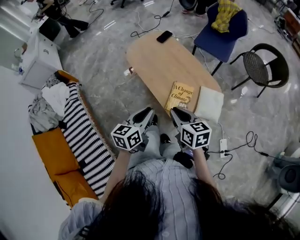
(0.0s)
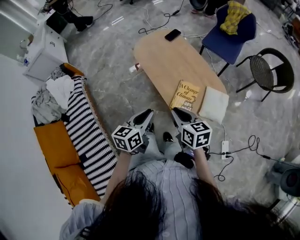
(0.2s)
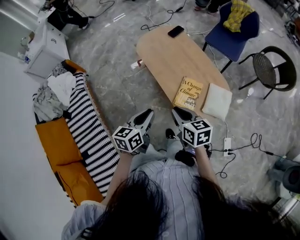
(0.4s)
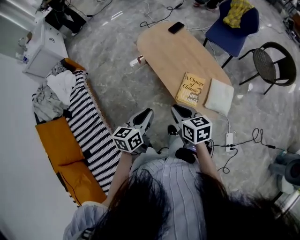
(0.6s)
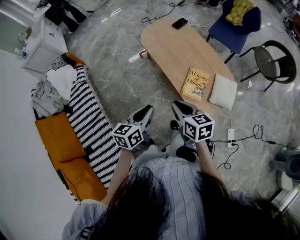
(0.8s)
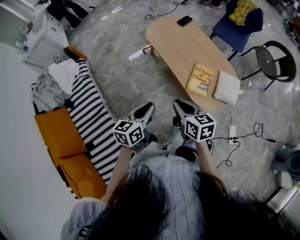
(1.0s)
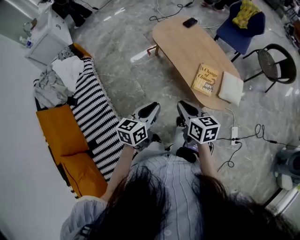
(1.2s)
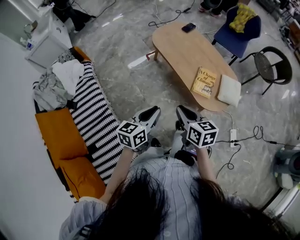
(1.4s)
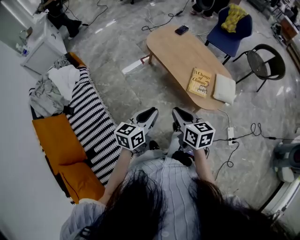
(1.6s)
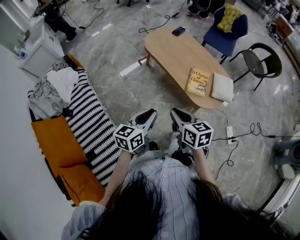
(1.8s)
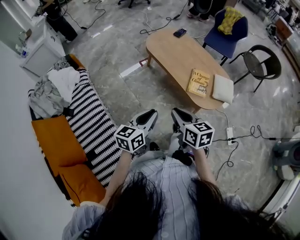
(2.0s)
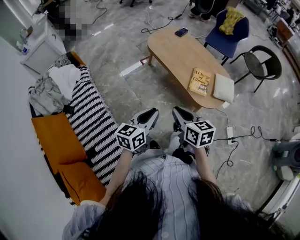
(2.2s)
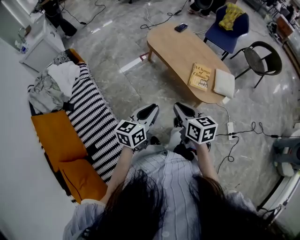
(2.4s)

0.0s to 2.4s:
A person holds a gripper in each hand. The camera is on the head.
0.0s to 1.2s: Both grippers move to the left and backward, roughly 20 cm.
1.2s to 2.4s: The right gripper heads backward and to the left, covering some 10 cm, while the left gripper shifts approximately 5 cm backward.

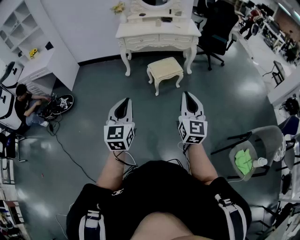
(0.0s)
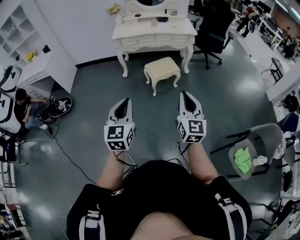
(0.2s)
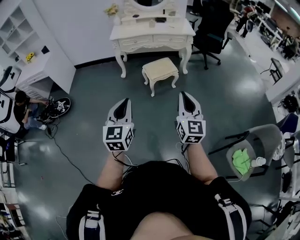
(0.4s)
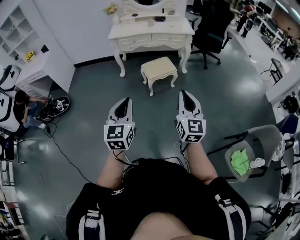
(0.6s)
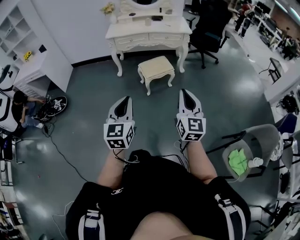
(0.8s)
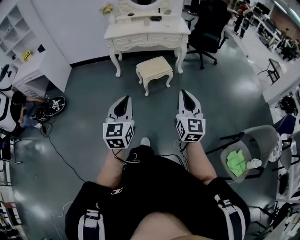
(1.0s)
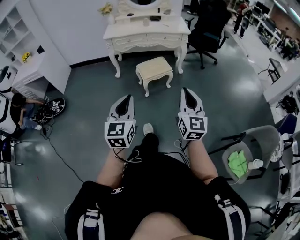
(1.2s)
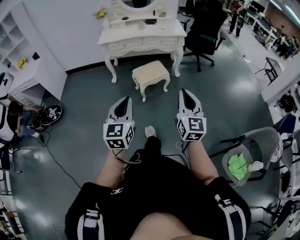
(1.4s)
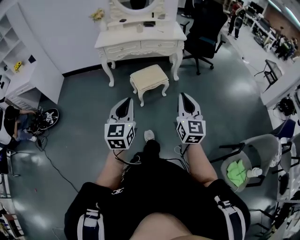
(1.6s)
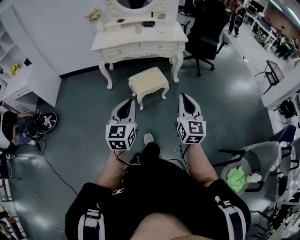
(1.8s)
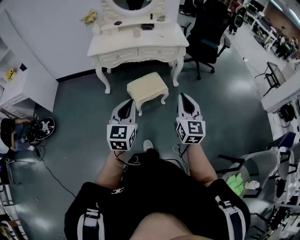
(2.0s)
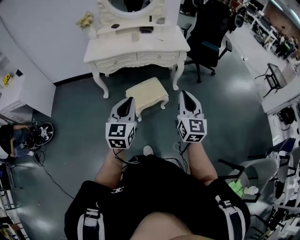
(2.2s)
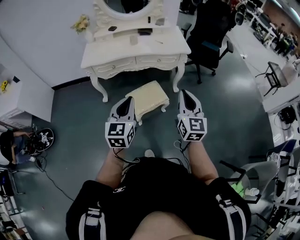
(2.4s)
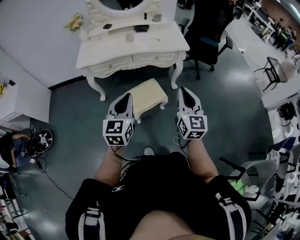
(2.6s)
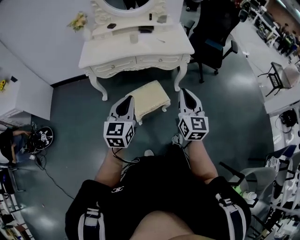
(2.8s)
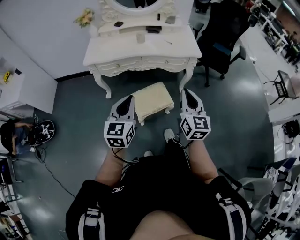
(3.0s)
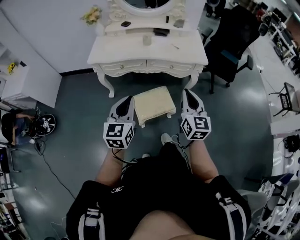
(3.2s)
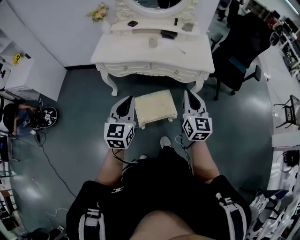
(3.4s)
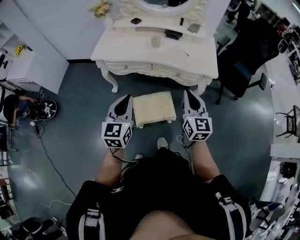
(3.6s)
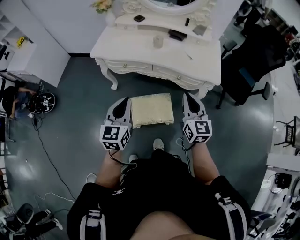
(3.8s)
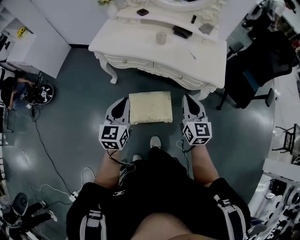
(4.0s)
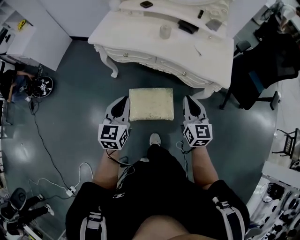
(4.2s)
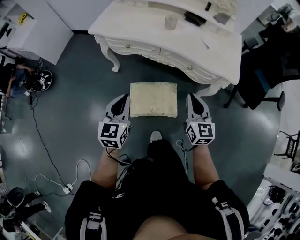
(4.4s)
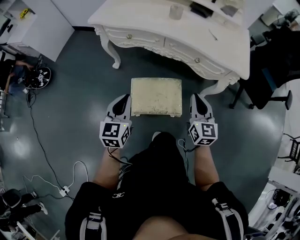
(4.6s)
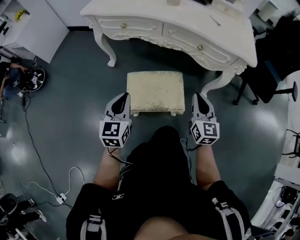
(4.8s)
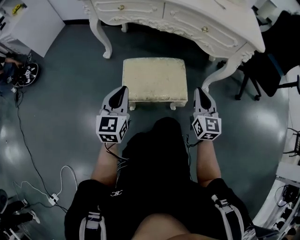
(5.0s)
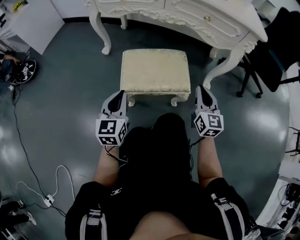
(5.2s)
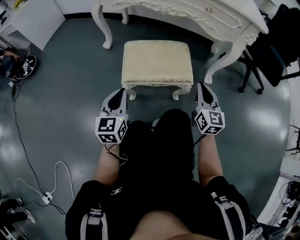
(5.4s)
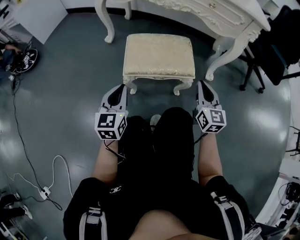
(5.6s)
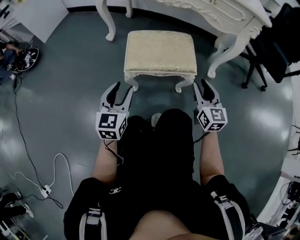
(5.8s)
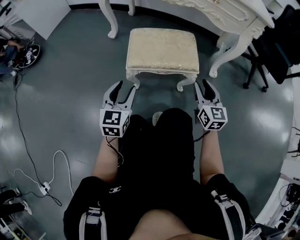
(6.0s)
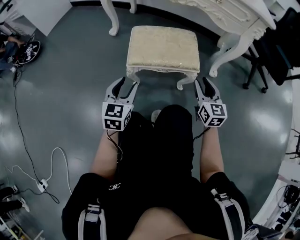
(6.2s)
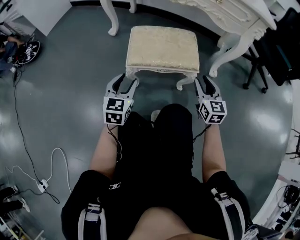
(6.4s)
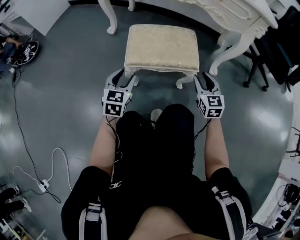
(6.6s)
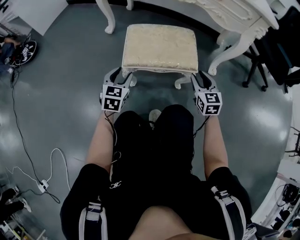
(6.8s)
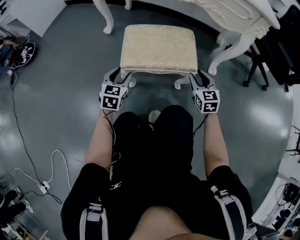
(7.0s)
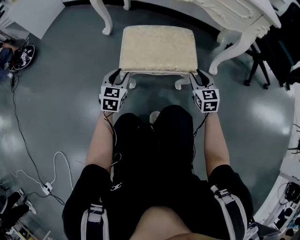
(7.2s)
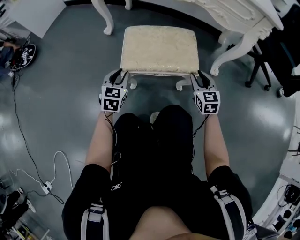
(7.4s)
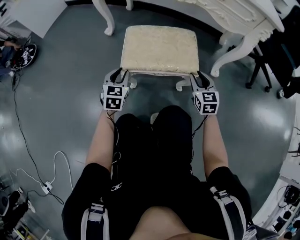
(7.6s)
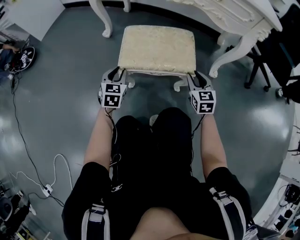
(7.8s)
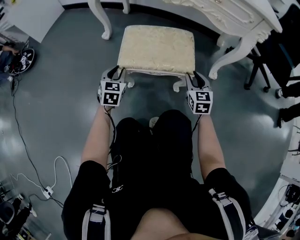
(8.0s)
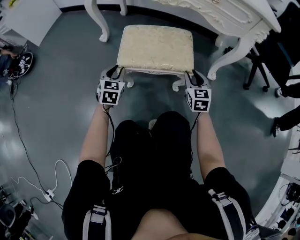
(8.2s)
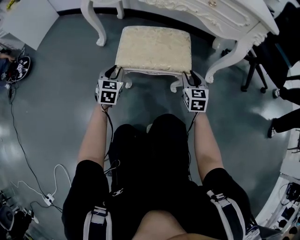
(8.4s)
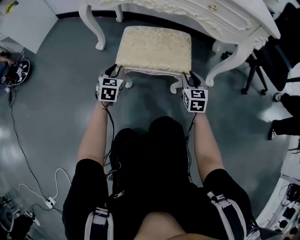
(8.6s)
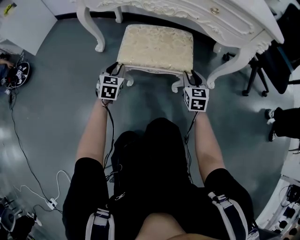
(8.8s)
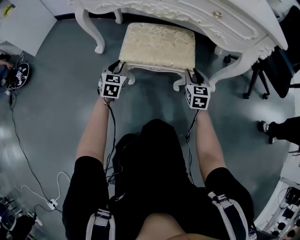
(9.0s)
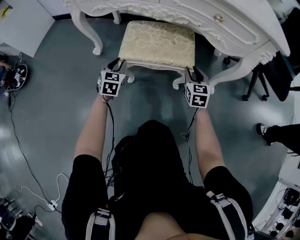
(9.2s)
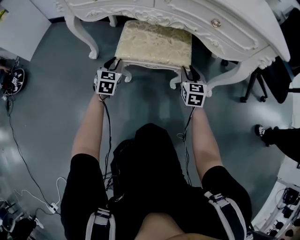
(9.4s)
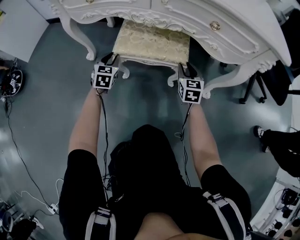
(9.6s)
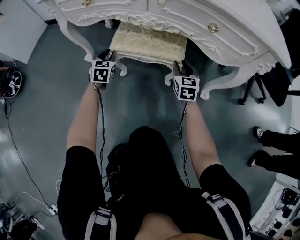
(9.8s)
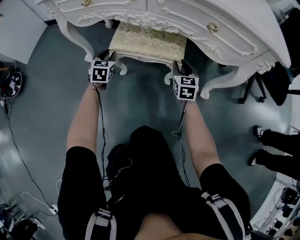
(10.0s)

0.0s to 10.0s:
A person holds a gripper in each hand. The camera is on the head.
0.0s to 1.4s: The grippers both shift to the right and forward by approximately 15 cm.
1.4s to 2.8s: Both grippers are carried forward, approximately 50 cm.
2.8s to 4.2s: The left gripper shifts by some 25 cm, and rotates roughly 30 degrees. The right gripper shifts by roughly 35 cm, and turns by roughly 30 degrees.
4.2s to 5.8s: The right gripper heads downward, covering about 50 cm, and opens. Meanwhile the left gripper travels downward and backward by approximately 50 cm, and opens up.
5.8s to 7.2s: The right gripper moves downward and forward, some 15 cm; the left gripper moves forward and downward, roughly 15 cm.
7.2s to 8.6s: Both grippers travel together forward, approximately 15 cm.
8.6s to 10.0s: Both grippers move forward, roughly 20 cm.

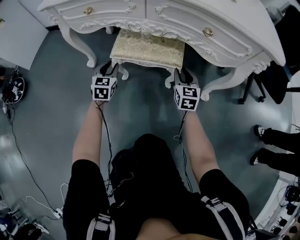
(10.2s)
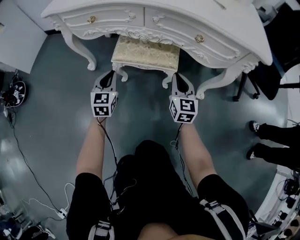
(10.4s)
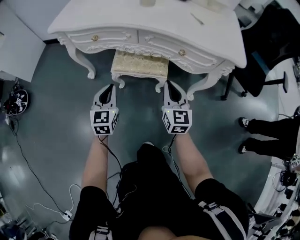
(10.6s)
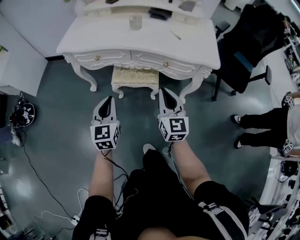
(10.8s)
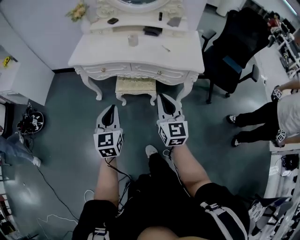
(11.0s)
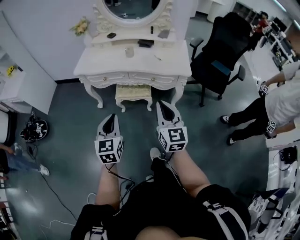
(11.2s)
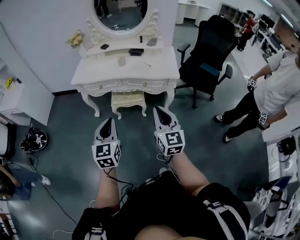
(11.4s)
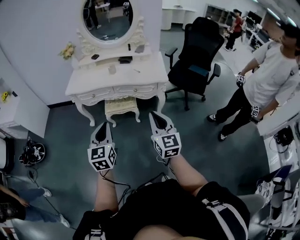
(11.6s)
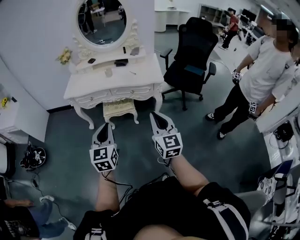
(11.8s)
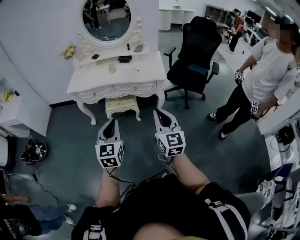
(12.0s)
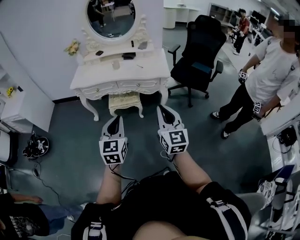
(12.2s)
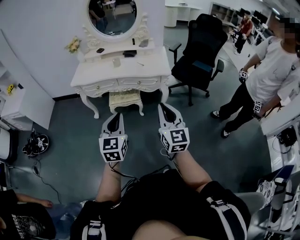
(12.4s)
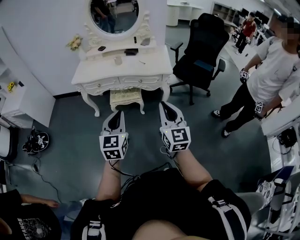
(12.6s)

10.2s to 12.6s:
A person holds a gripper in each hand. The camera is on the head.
10.2s to 11.4s: The two grippers travel together, backward, approximately 50 cm. The grippers both shift upward by some 70 cm. The left gripper closes up; the right gripper closes.
11.4s to 12.6s: The right gripper heads backward and to the right, covering about 10 cm. The left gripper goes about 10 cm to the right and backward.

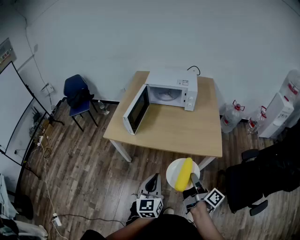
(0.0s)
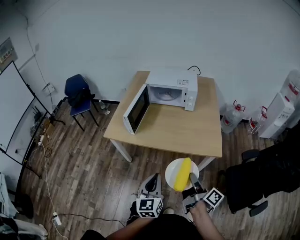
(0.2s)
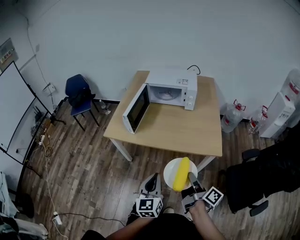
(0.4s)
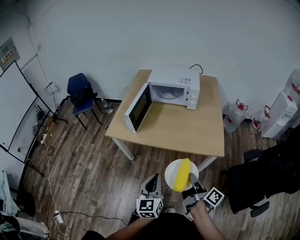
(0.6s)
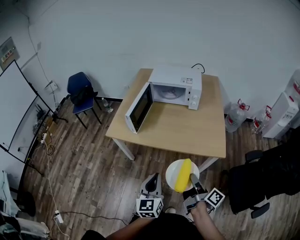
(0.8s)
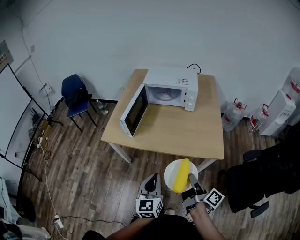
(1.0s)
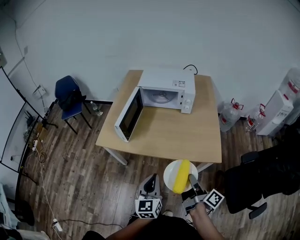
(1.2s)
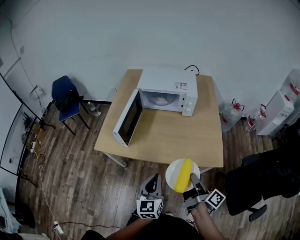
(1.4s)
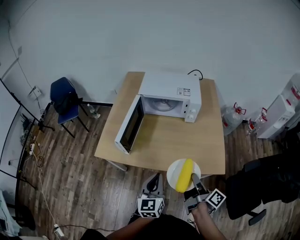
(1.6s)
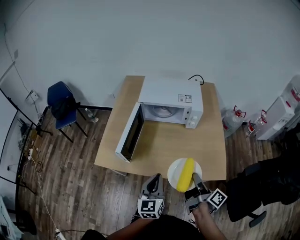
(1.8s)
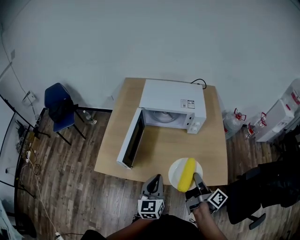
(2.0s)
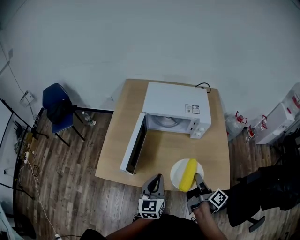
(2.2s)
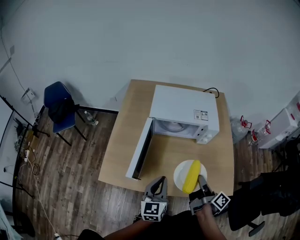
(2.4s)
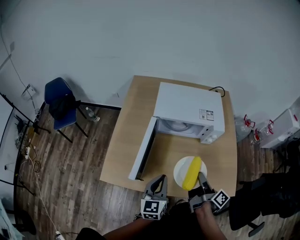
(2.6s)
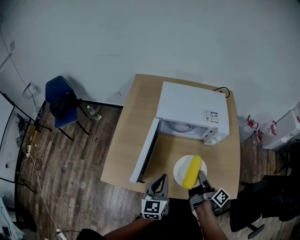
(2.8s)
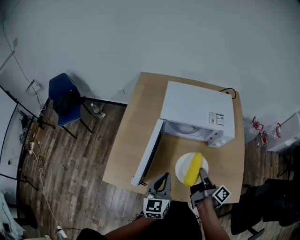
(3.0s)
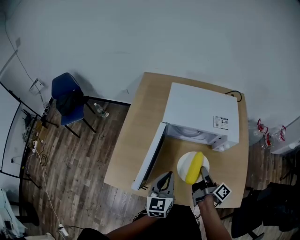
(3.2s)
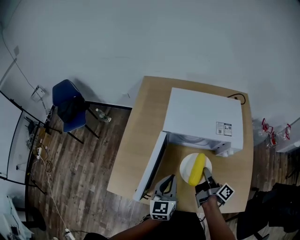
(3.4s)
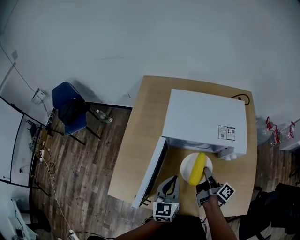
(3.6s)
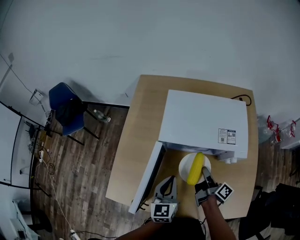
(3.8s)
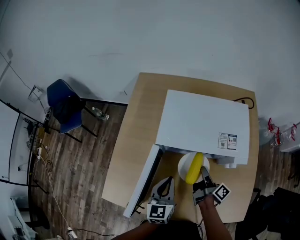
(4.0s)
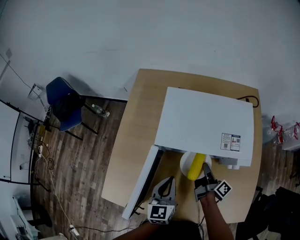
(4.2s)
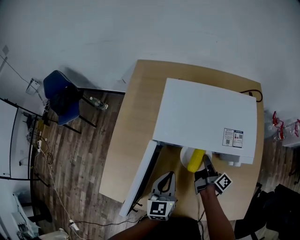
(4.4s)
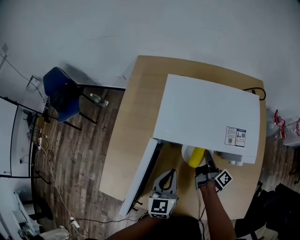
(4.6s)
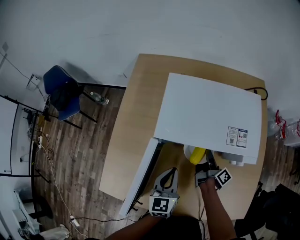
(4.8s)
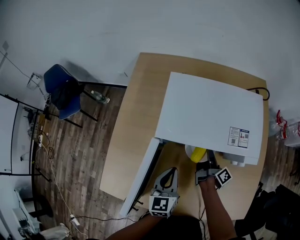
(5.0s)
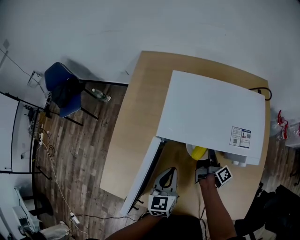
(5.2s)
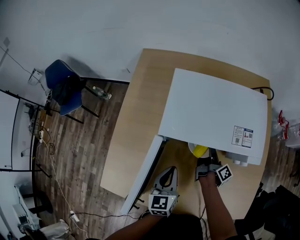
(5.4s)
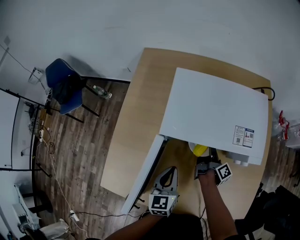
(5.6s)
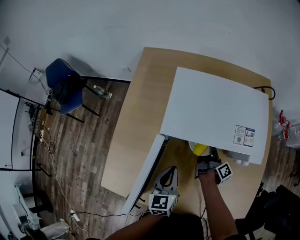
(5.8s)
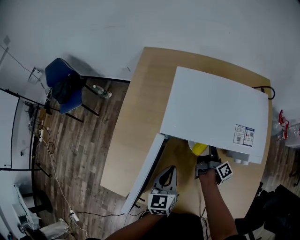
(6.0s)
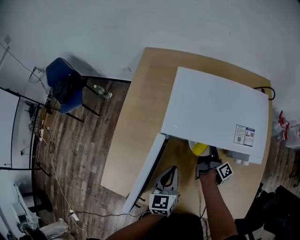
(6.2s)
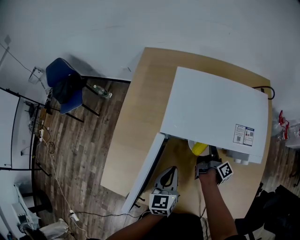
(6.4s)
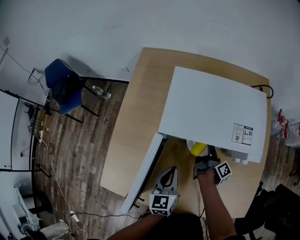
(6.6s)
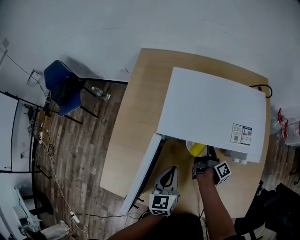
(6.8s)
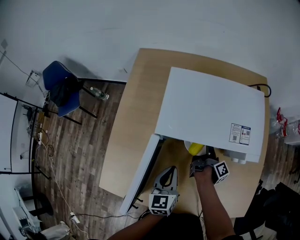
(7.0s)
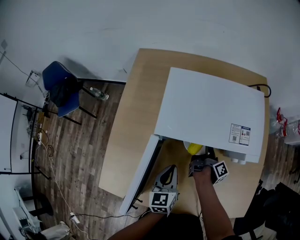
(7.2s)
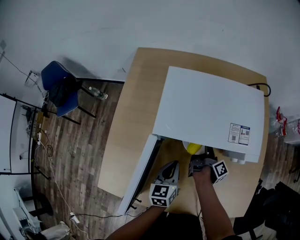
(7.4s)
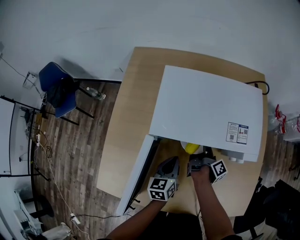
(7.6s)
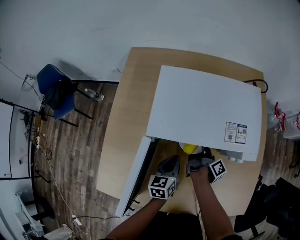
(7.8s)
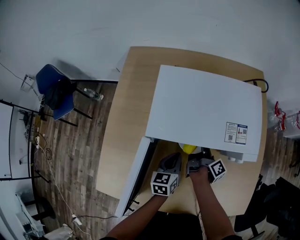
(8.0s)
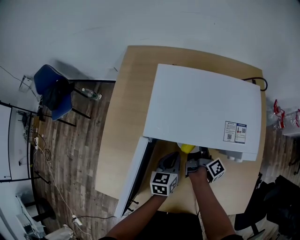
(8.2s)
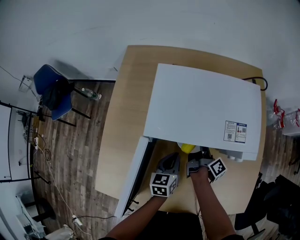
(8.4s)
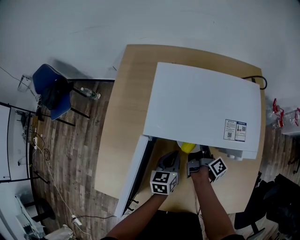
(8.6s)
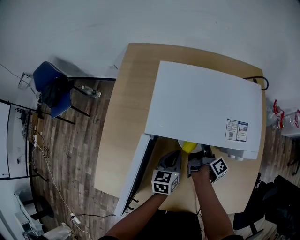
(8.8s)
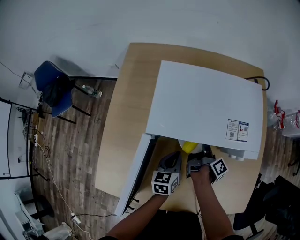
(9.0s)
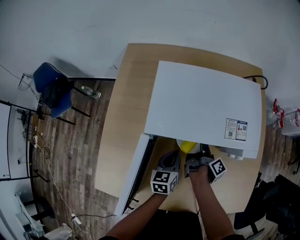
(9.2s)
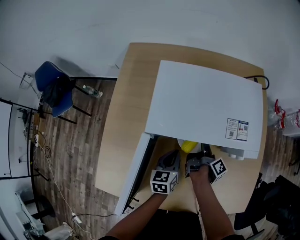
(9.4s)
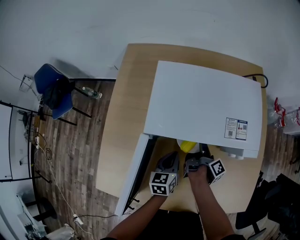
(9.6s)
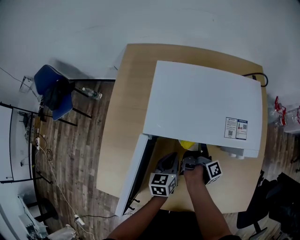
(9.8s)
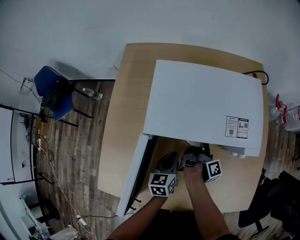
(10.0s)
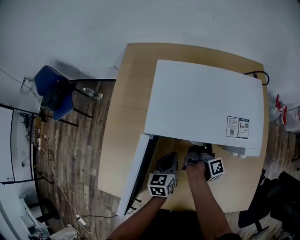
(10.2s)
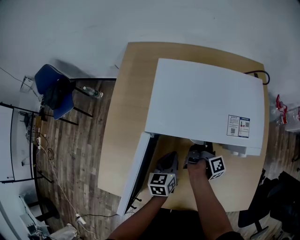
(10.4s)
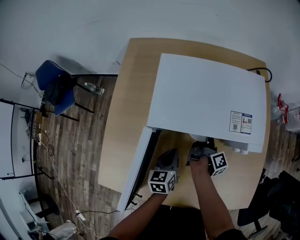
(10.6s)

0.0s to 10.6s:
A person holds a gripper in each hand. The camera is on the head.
0.0s to 1.6s: The left gripper changes place by some 20 cm.
1.6s to 3.0s: The left gripper shifts by some 25 cm.
3.0s to 4.6s: The left gripper moves some 15 cm.
6.0s to 7.6s: The left gripper changes place by about 10 cm.
